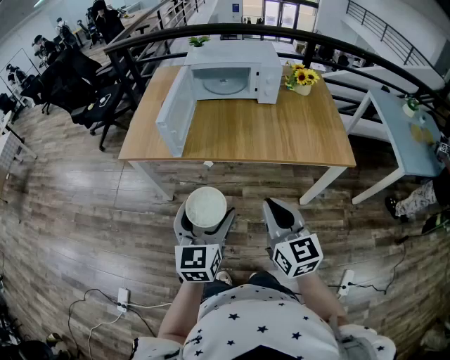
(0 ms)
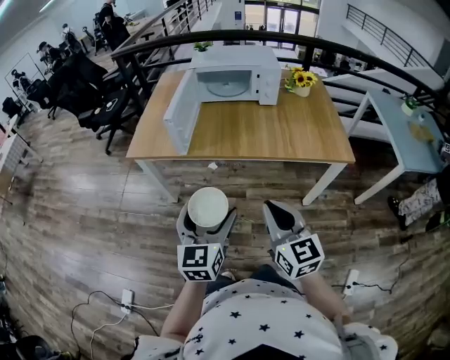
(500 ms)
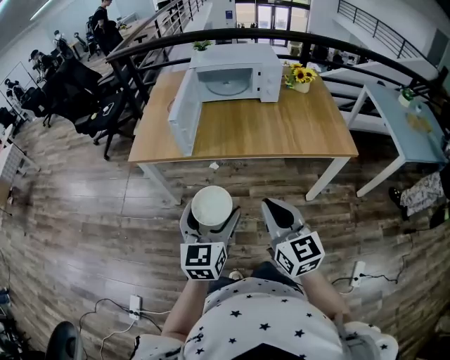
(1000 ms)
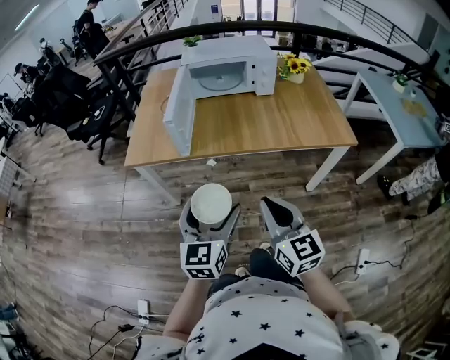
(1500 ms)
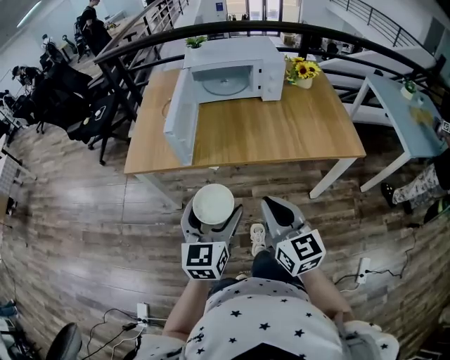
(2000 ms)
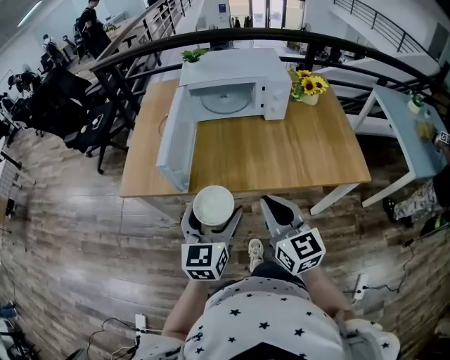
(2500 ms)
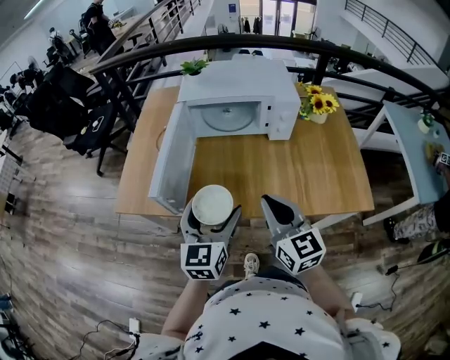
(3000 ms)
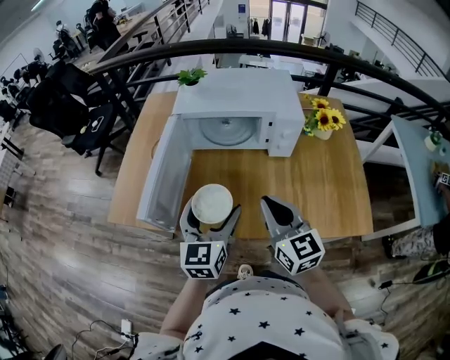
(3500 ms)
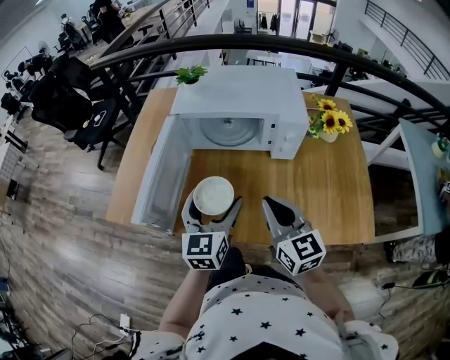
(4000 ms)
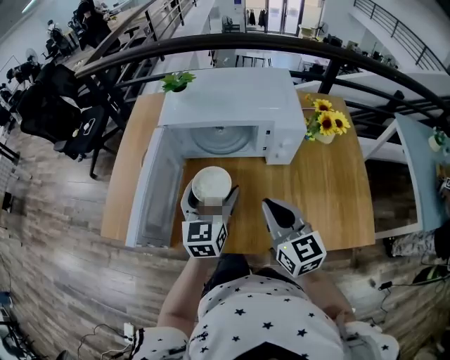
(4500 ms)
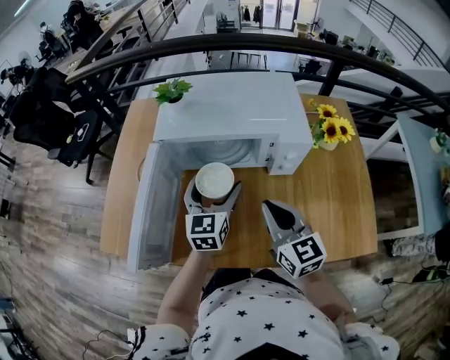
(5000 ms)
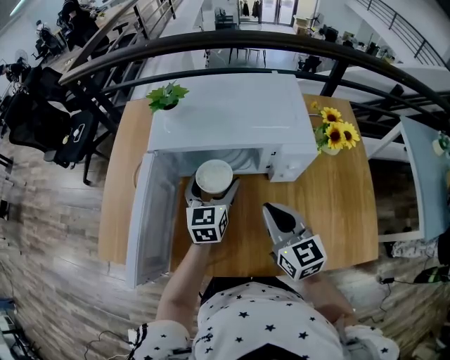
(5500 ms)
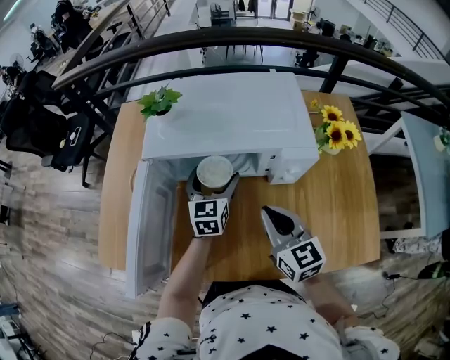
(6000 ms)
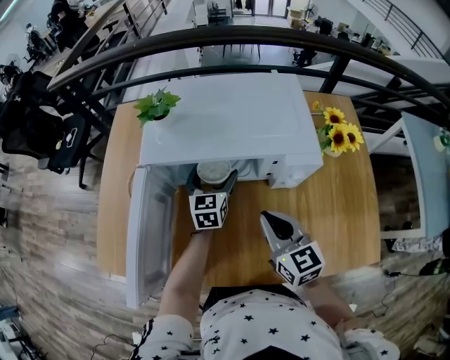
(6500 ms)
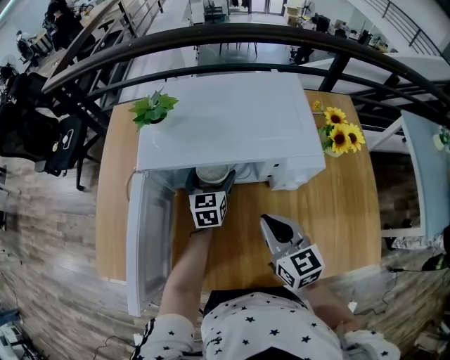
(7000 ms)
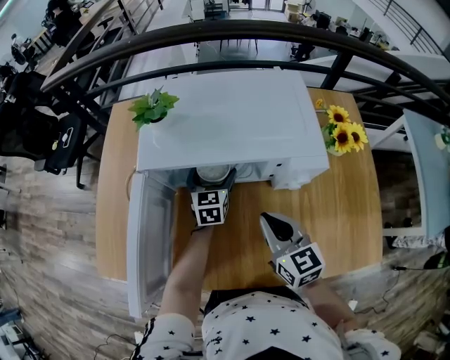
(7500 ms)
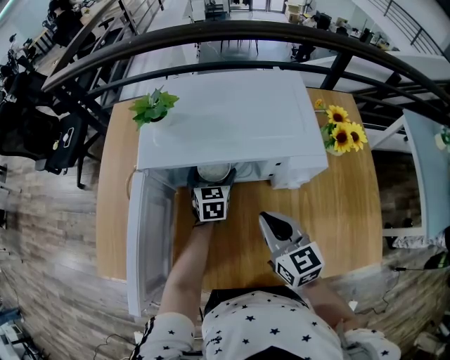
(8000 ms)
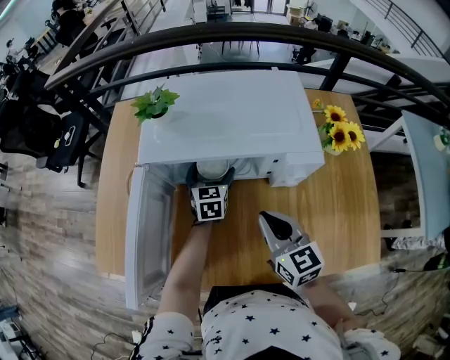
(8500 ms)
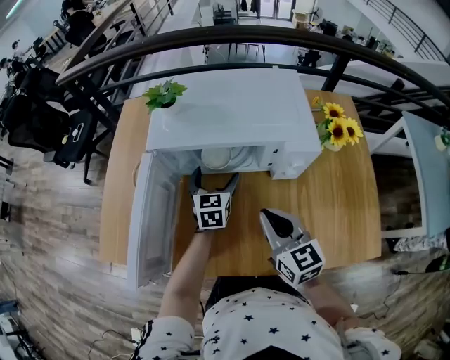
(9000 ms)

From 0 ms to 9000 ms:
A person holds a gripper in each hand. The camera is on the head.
From 0 ms to 2000 ms: The right gripper shifts approximately 5 cm to the left, while the left gripper ends up some 5 cm from where it was.
From 2000 ms to 4500 ms: Both grippers are carried forward, approximately 40 cm.
From 4500 ms to 7000 ms: The left gripper heads forward and downward, covering roughly 25 cm. The right gripper travels forward and downward by approximately 15 cm.
From 7000 ms to 9000 ms: The left gripper goes approximately 5 cm backward.

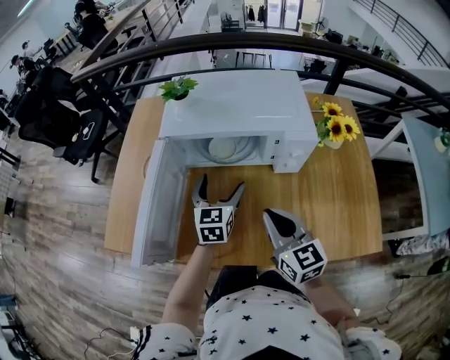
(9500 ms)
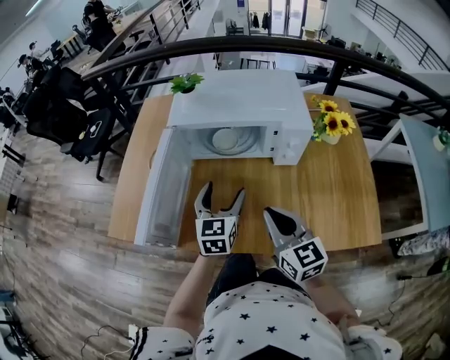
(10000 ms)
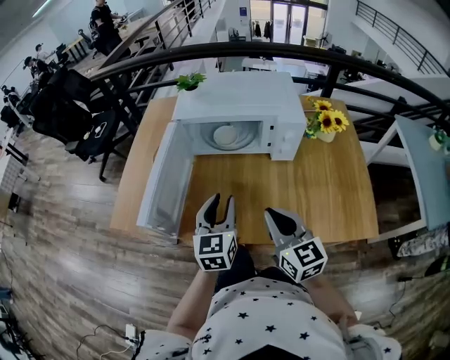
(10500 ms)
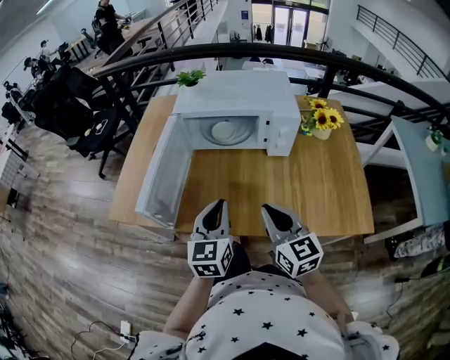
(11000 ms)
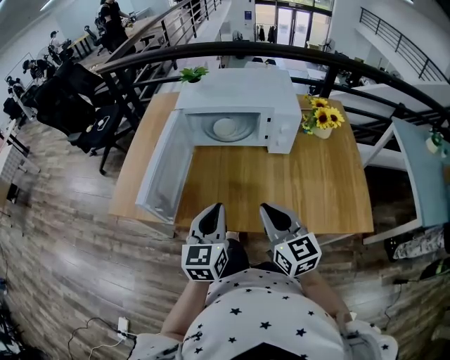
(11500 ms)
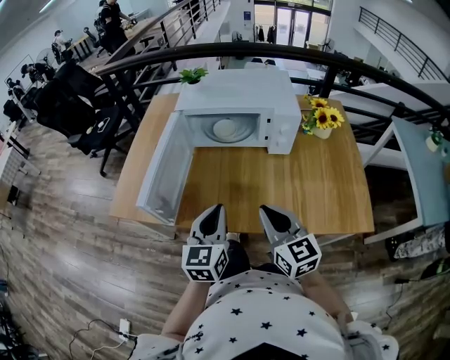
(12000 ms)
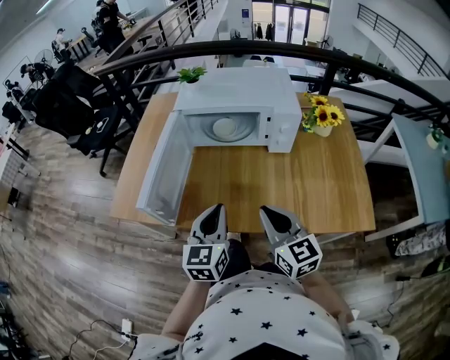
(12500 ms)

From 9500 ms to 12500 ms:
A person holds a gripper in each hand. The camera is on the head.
From 9500 ms to 11000 ms: The left gripper is displaced backward by approximately 20 cm, and closes its fingers. The right gripper shifts some 15 cm backward.
From 11000 ms to 12500 ms: The grippers make only small movements.

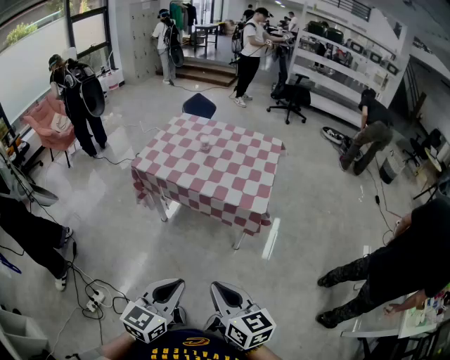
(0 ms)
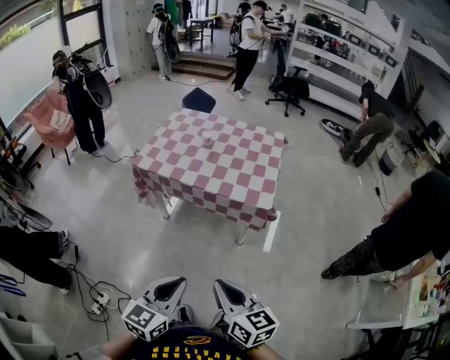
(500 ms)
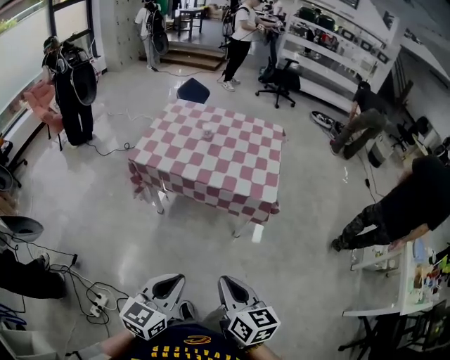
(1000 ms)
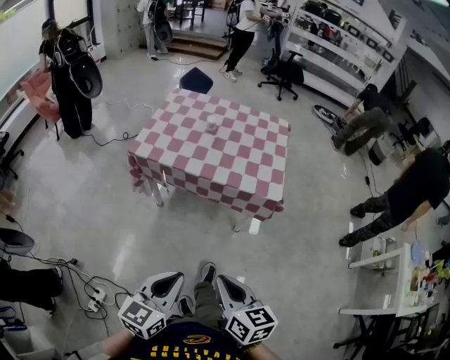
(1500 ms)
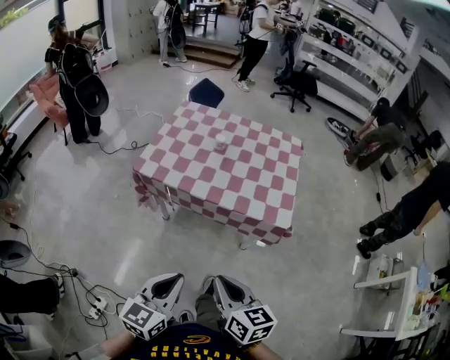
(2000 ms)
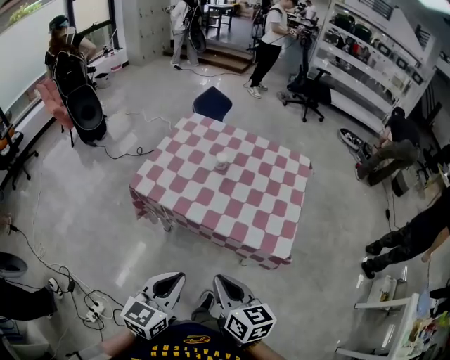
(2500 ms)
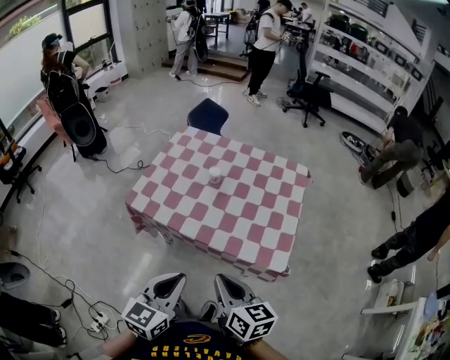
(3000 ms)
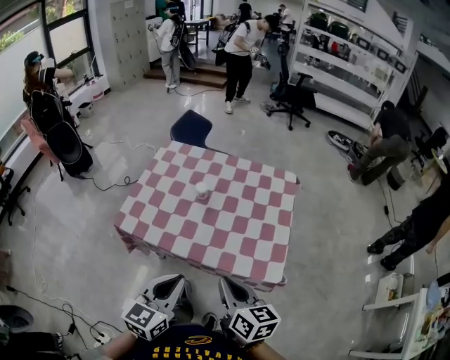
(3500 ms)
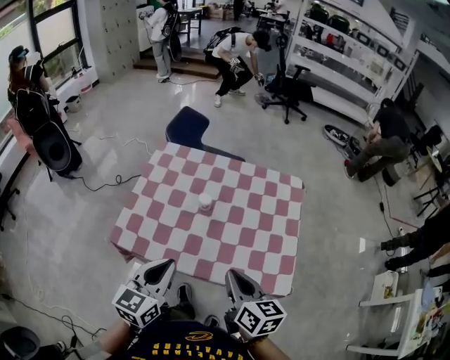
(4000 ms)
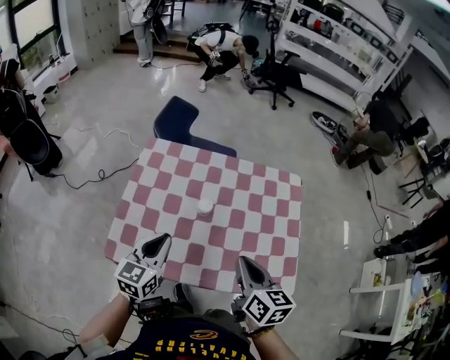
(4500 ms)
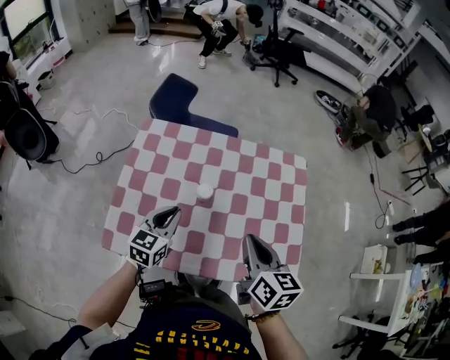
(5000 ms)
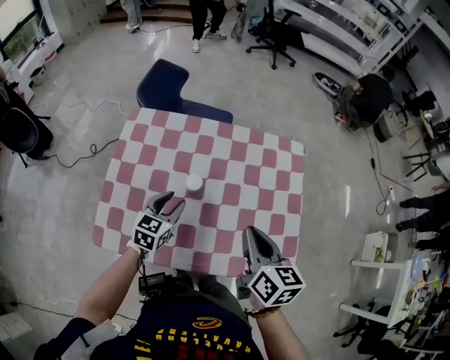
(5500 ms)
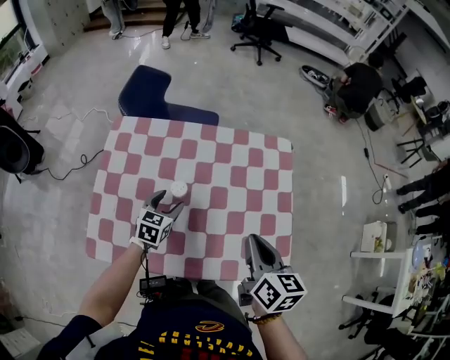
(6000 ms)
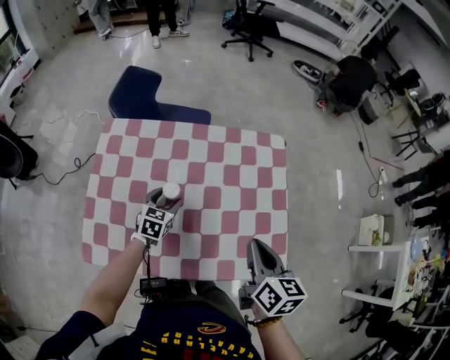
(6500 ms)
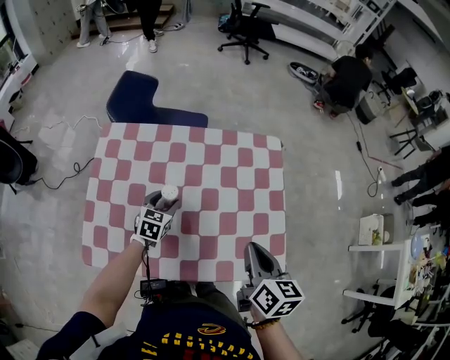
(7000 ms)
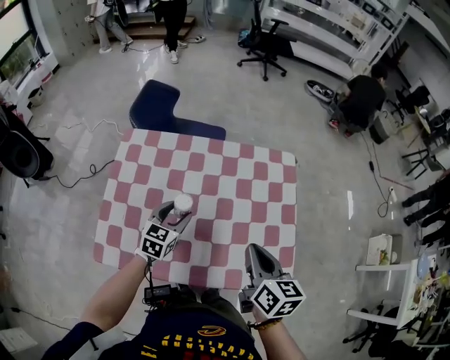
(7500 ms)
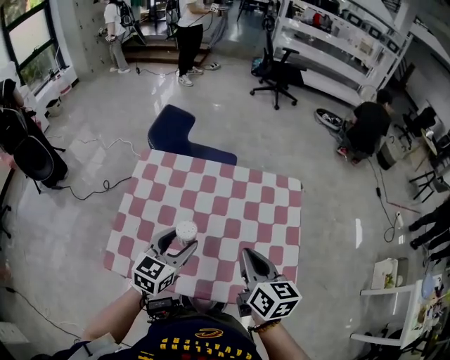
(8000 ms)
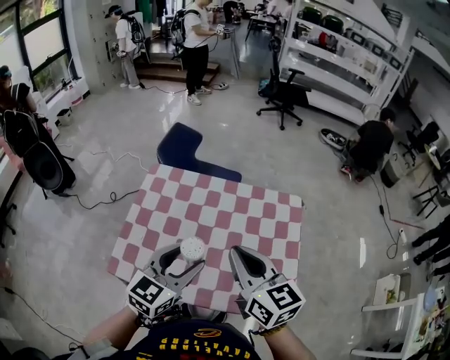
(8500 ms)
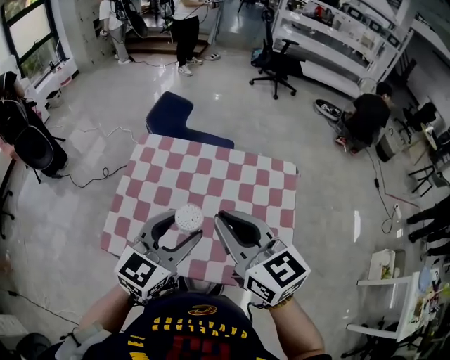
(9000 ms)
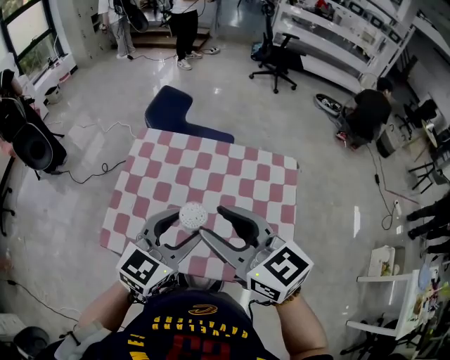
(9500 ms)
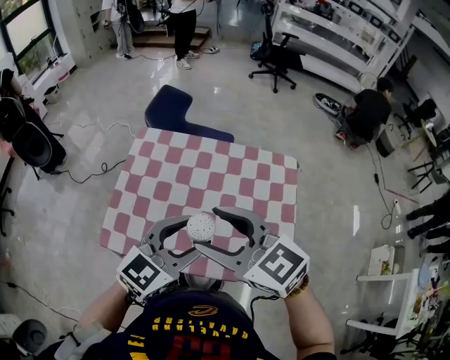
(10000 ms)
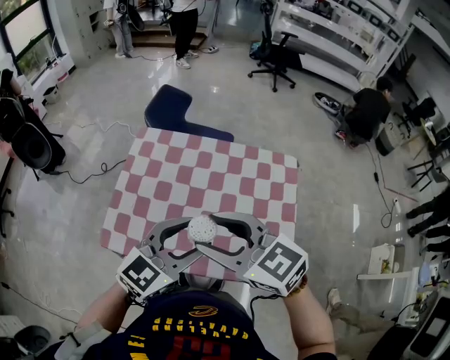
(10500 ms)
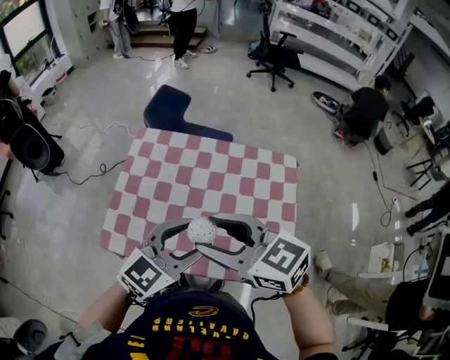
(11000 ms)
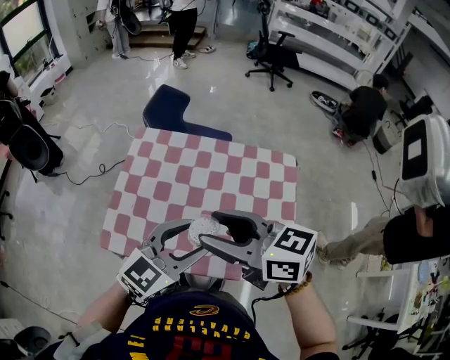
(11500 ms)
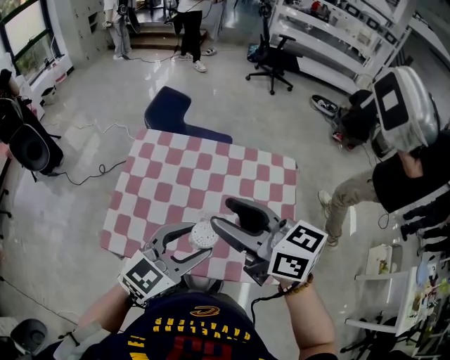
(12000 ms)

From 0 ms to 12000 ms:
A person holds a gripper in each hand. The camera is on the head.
From 0 ms to 2000 ms: The two grippers go some 20 cm forward and to the left.
From 2000 ms to 4000 ms: Both grippers travel together forward, roughly 35 cm.
From 4000 ms to 6000 ms: The right gripper travels forward and to the right by some 15 cm. The left gripper moves forward and downward, some 35 cm, changes its angle by some 30 degrees, and opens.
From 6000 ms to 8000 ms: The right gripper heads to the left, covering some 5 cm; the left gripper goes roughly 20 cm upward and backward.
From 8000 ms to 10000 ms: The left gripper travels upward, backward and to the right by some 15 cm, and changes its angle by approximately 20 degrees. Meanwhile the right gripper shifts some 15 cm upward and to the left, changes its angle by approximately 50 degrees, and opens its fingers.
From 10000 ms to 12000 ms: The right gripper turns by roughly 30 degrees.

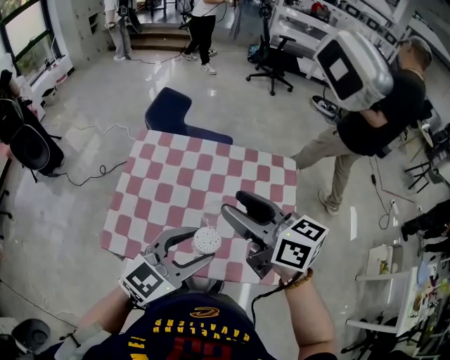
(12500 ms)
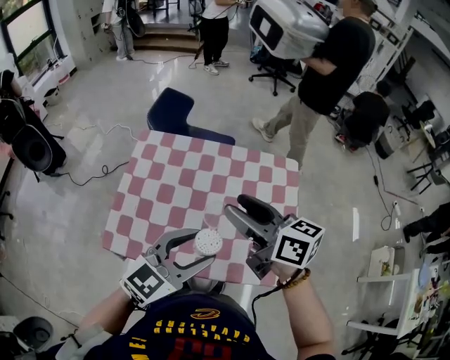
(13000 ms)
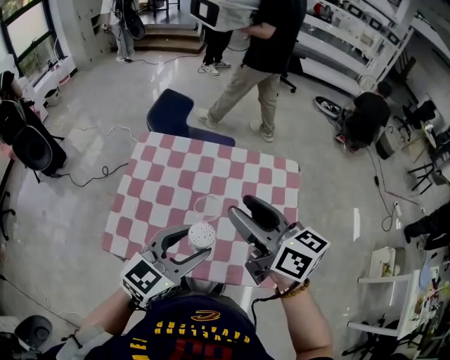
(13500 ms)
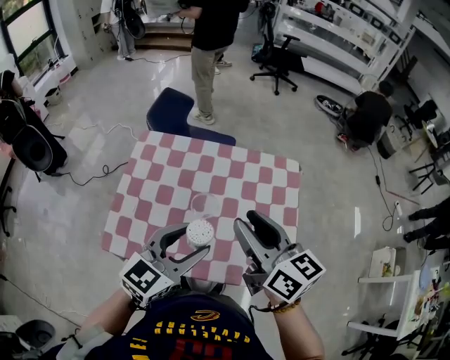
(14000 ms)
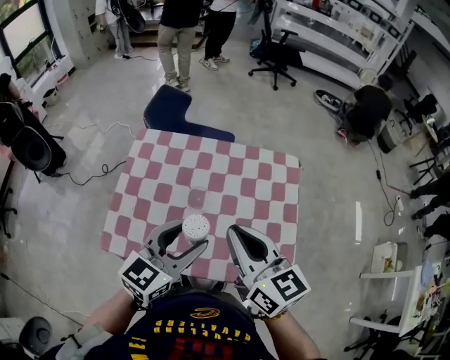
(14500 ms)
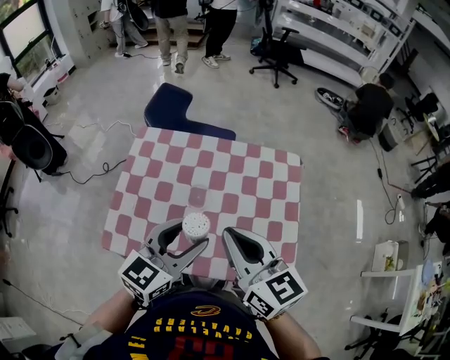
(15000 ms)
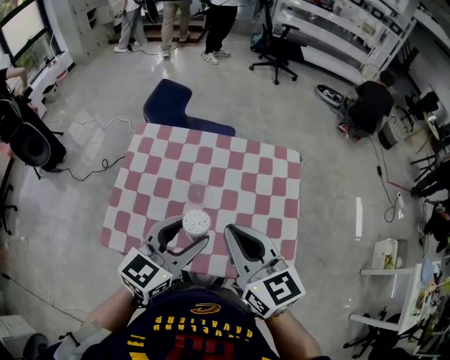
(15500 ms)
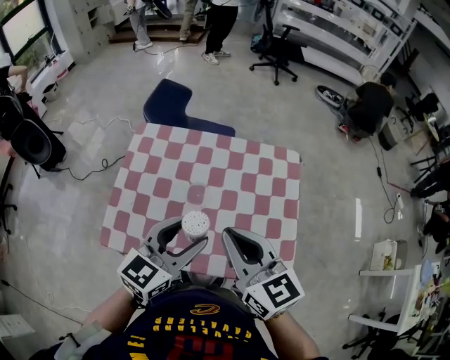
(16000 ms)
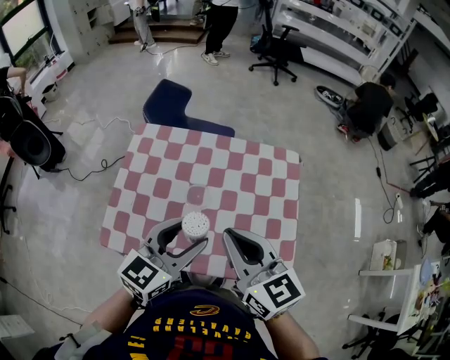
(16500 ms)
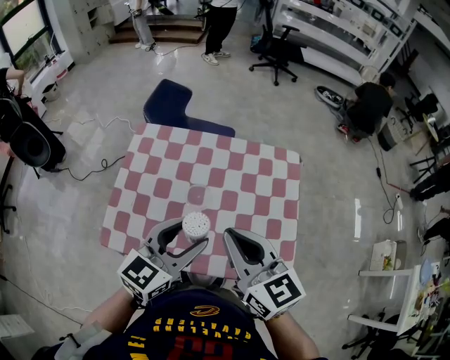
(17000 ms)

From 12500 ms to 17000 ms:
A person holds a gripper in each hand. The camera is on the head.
From 12500 ms to 14500 ms: The right gripper changes place by roughly 5 cm, and closes up.
From 14500 ms to 17000 ms: The grippers move only a little.
